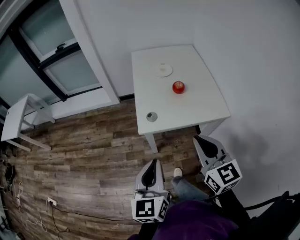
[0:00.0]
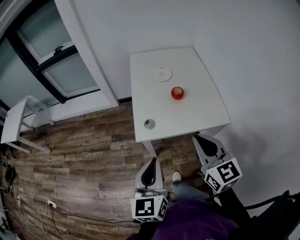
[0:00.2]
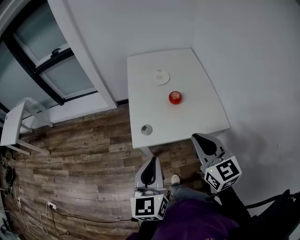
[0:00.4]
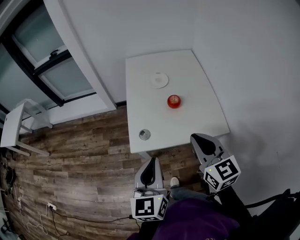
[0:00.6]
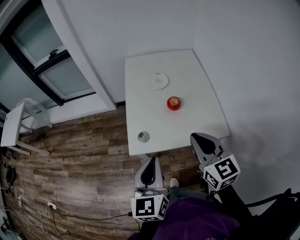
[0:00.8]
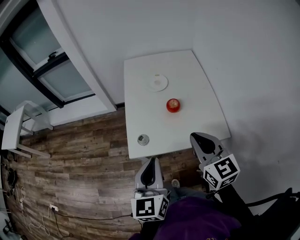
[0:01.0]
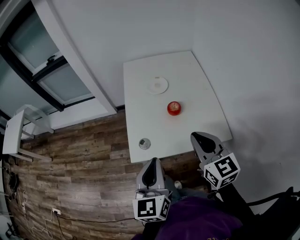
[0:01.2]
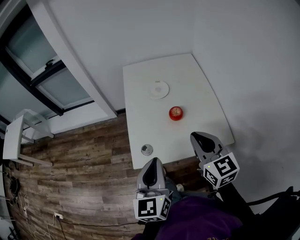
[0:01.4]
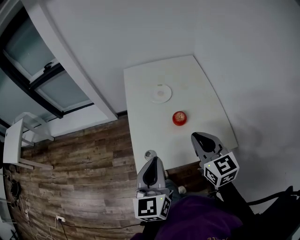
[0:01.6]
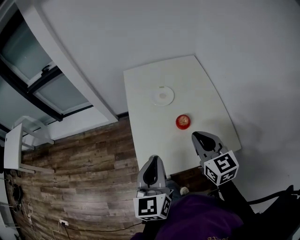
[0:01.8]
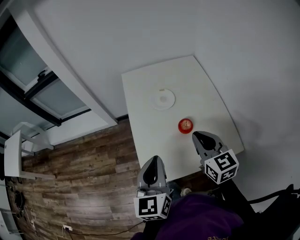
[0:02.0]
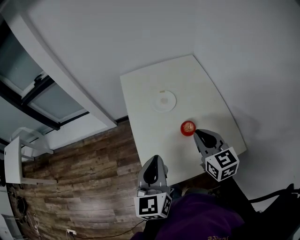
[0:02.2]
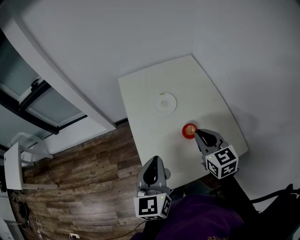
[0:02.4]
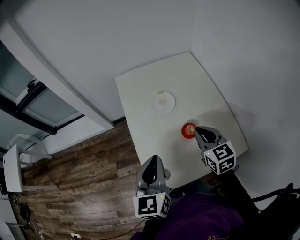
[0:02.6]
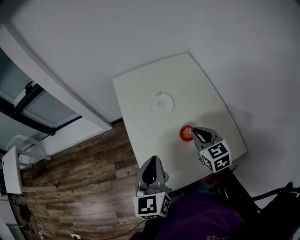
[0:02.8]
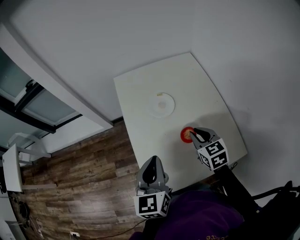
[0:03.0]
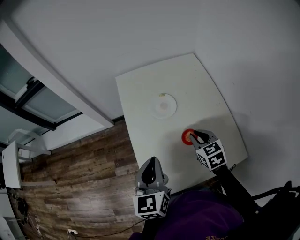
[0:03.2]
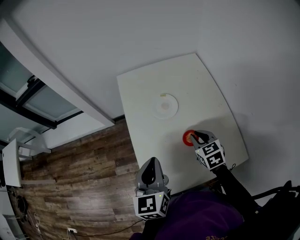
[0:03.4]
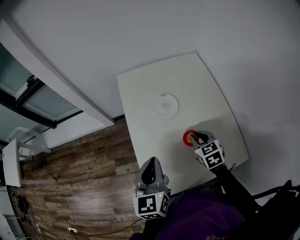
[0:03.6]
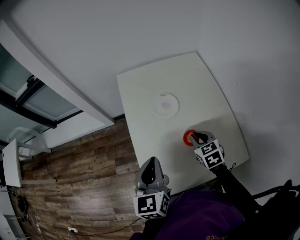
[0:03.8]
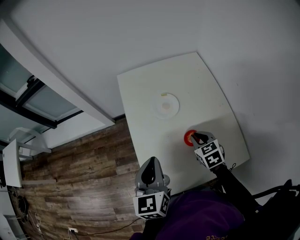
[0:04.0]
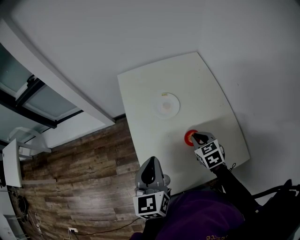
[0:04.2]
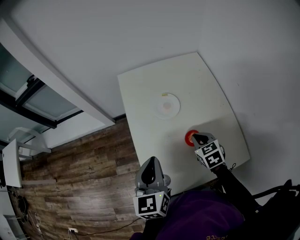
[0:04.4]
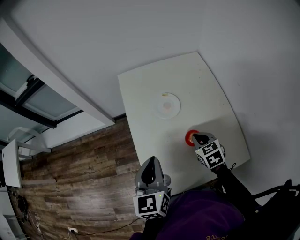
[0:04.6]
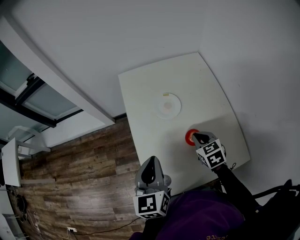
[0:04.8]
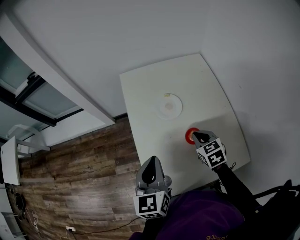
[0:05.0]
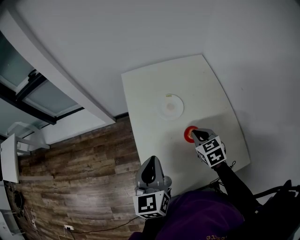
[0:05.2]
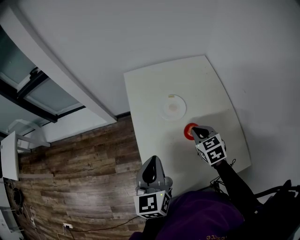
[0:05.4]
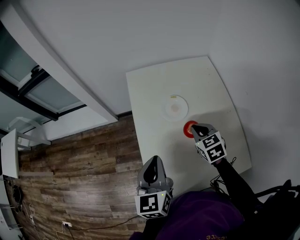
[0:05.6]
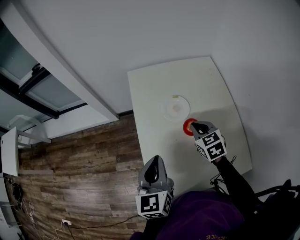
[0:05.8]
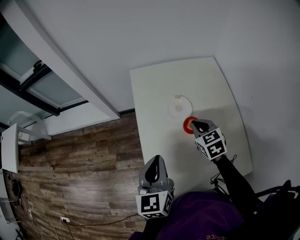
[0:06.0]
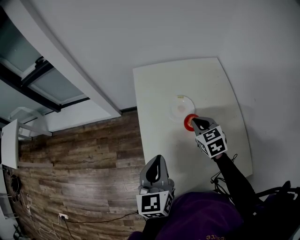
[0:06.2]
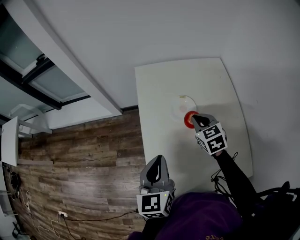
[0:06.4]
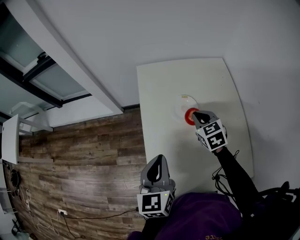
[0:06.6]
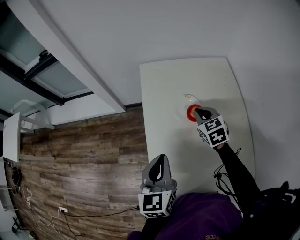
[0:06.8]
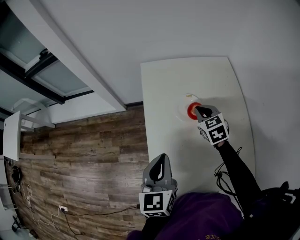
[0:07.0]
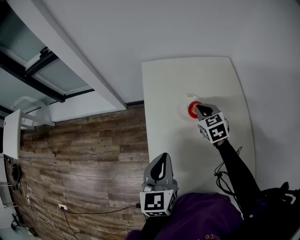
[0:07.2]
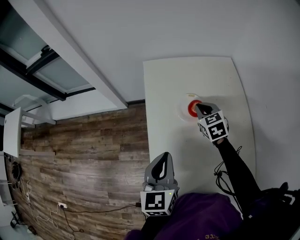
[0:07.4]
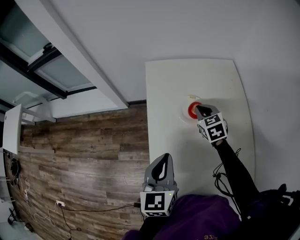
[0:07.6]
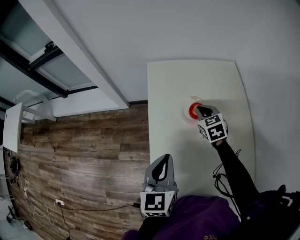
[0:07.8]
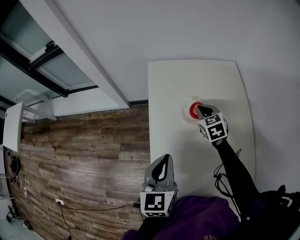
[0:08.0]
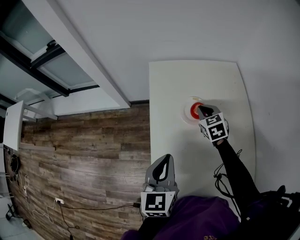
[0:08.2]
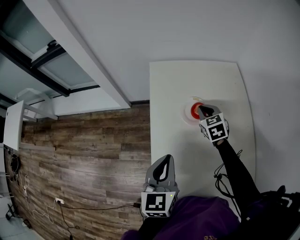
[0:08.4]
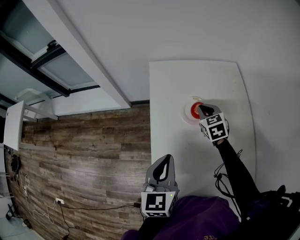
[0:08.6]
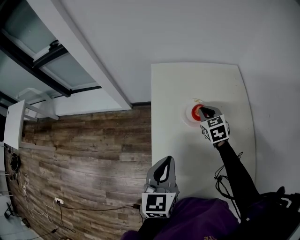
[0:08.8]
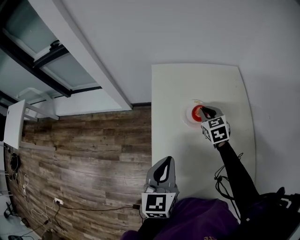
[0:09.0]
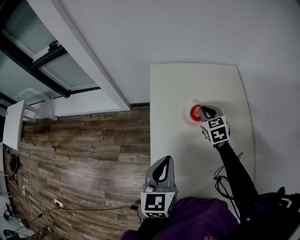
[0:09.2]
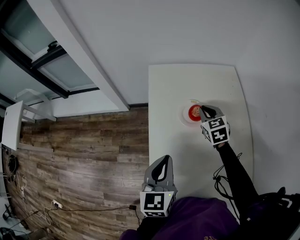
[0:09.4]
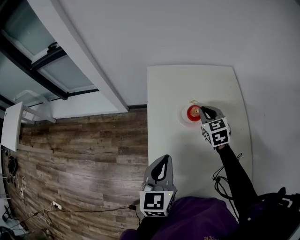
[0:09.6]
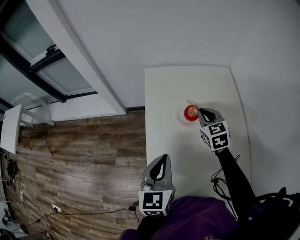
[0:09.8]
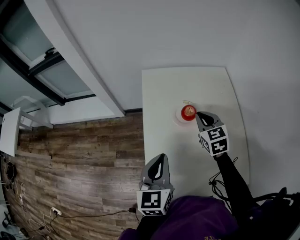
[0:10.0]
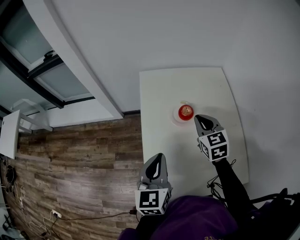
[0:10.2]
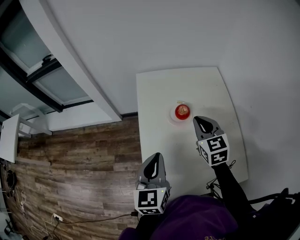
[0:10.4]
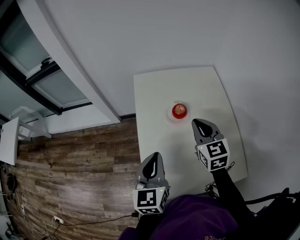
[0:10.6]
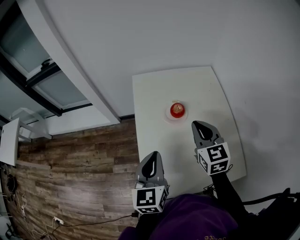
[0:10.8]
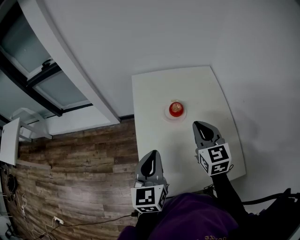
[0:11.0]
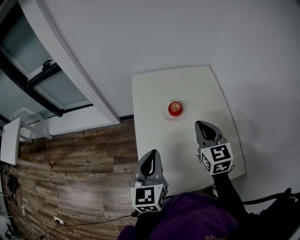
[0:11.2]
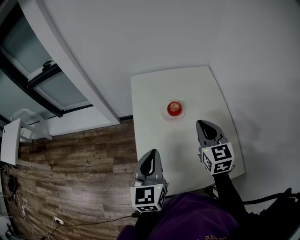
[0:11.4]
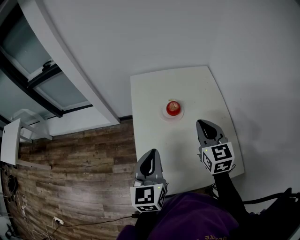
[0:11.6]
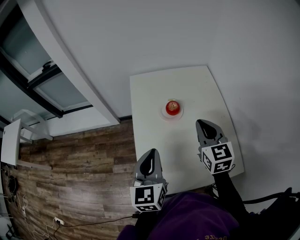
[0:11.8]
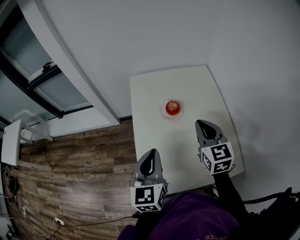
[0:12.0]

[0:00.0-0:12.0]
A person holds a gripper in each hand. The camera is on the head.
0:00.0 to 0:01.6: The two grippers go roughly 25 cm forward.
0:01.6 to 0:03.0: The left gripper travels forward by roughly 15 cm. The right gripper shifts some 20 cm forward and downward, and changes its angle by some 20 degrees.
0:03.0 to 0:04.4: The right gripper travels downward by approximately 5 cm.
0:04.4 to 0:06.0: The right gripper moves forward, roughly 10 cm.
0:06.0 to 0:07.6: The right gripper moves forward, about 10 cm.
0:07.6 to 0:09.0: The two grippers keep their place.
0:09.0 to 0:10.4: The right gripper shifts some 15 cm upward and backward.
0:10.4 to 0:12.0: The right gripper heads backward, covering approximately 5 cm.

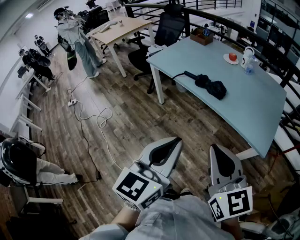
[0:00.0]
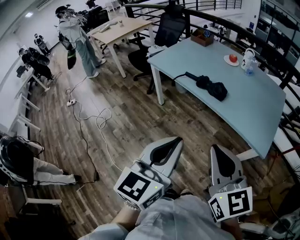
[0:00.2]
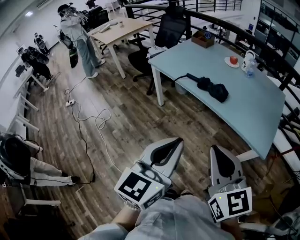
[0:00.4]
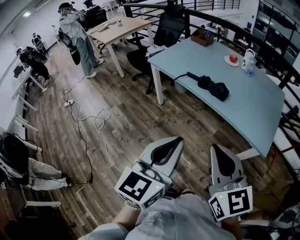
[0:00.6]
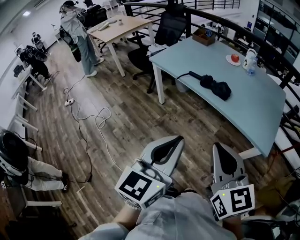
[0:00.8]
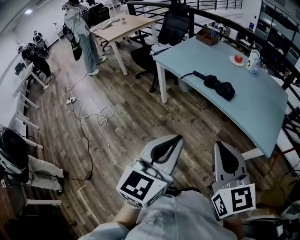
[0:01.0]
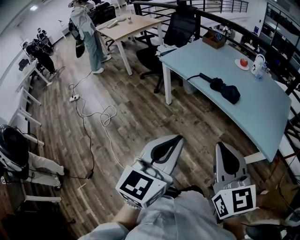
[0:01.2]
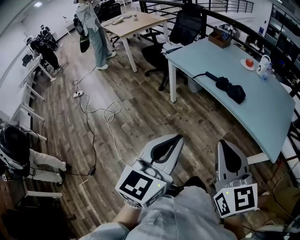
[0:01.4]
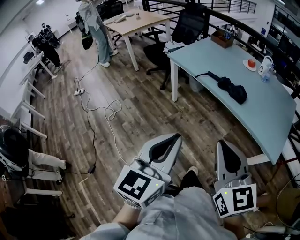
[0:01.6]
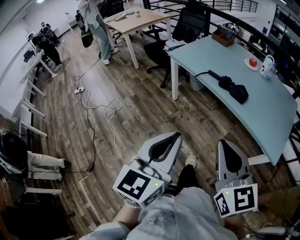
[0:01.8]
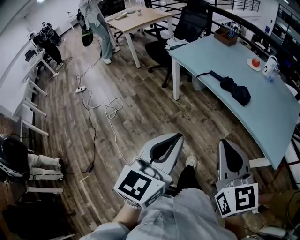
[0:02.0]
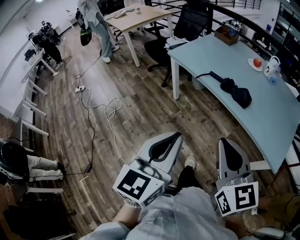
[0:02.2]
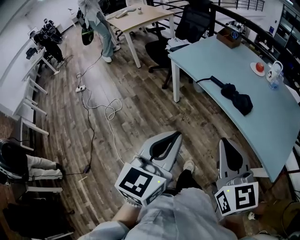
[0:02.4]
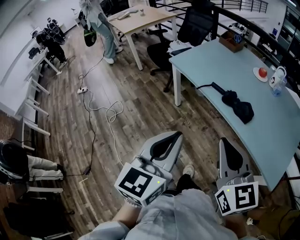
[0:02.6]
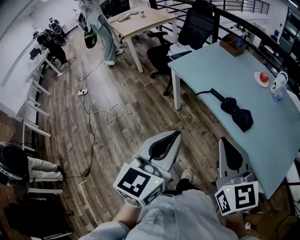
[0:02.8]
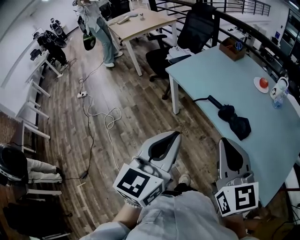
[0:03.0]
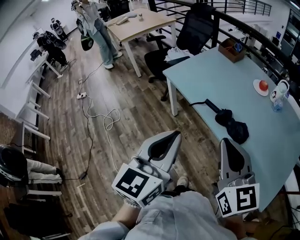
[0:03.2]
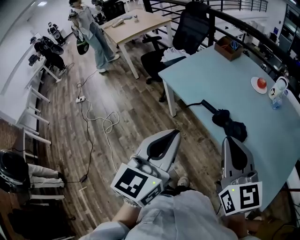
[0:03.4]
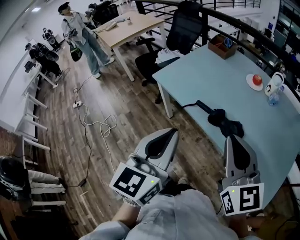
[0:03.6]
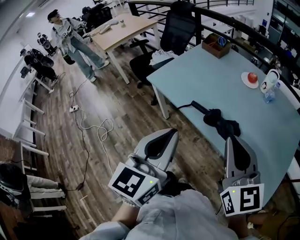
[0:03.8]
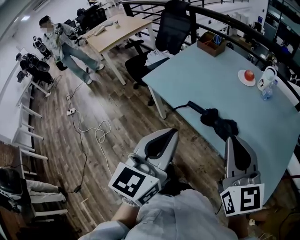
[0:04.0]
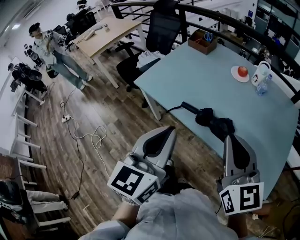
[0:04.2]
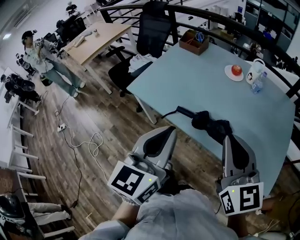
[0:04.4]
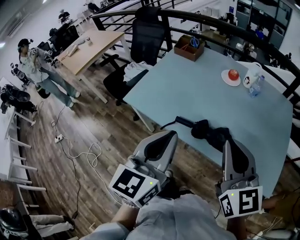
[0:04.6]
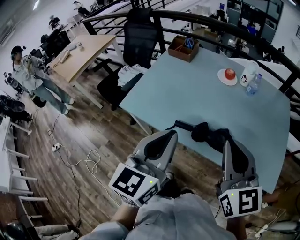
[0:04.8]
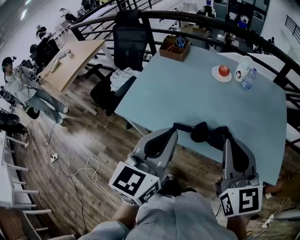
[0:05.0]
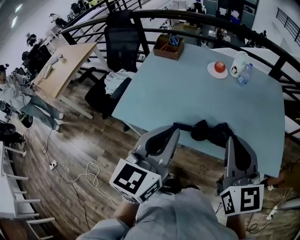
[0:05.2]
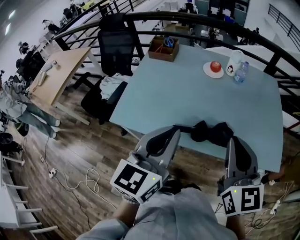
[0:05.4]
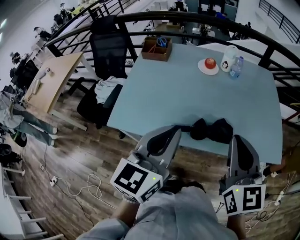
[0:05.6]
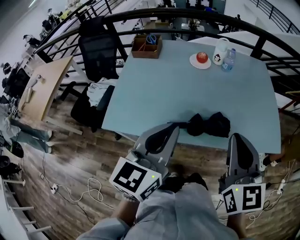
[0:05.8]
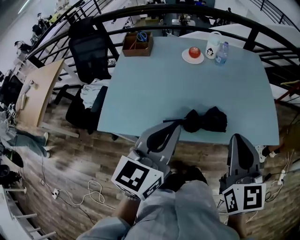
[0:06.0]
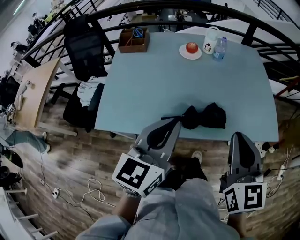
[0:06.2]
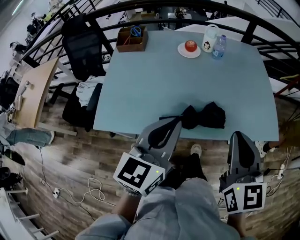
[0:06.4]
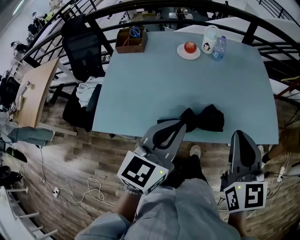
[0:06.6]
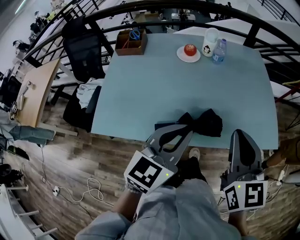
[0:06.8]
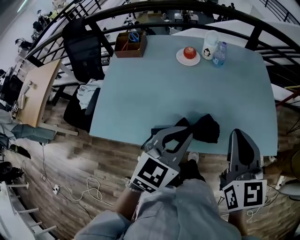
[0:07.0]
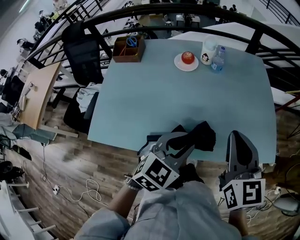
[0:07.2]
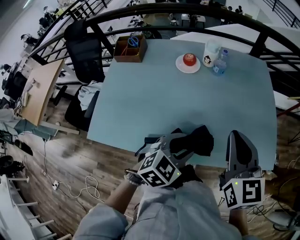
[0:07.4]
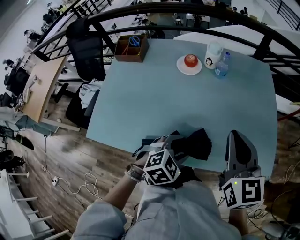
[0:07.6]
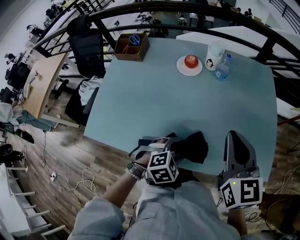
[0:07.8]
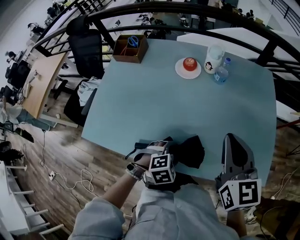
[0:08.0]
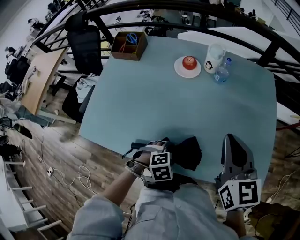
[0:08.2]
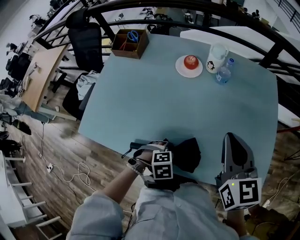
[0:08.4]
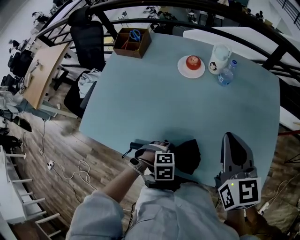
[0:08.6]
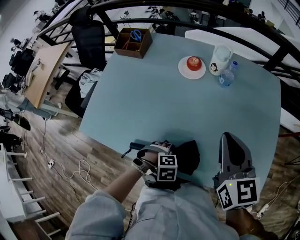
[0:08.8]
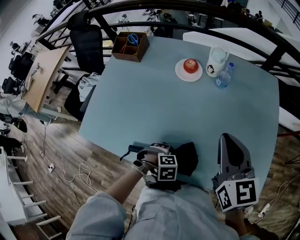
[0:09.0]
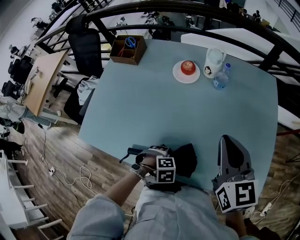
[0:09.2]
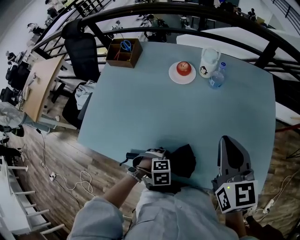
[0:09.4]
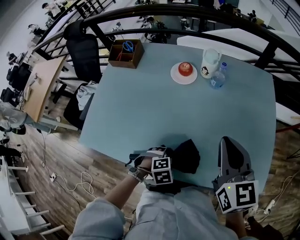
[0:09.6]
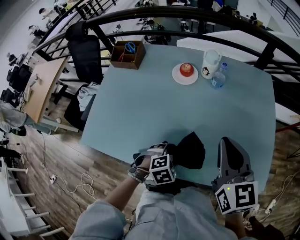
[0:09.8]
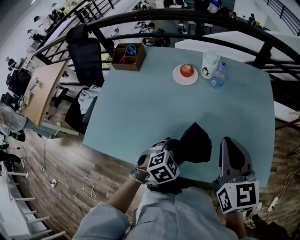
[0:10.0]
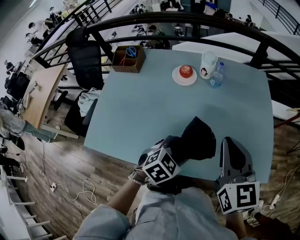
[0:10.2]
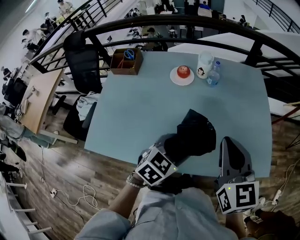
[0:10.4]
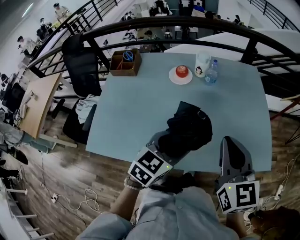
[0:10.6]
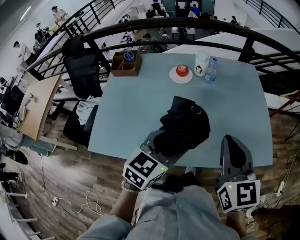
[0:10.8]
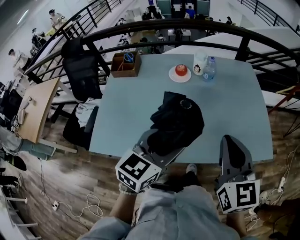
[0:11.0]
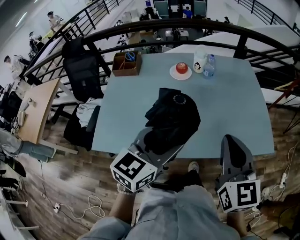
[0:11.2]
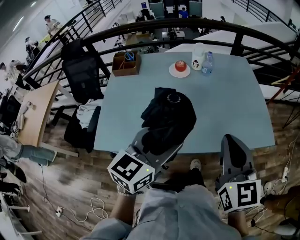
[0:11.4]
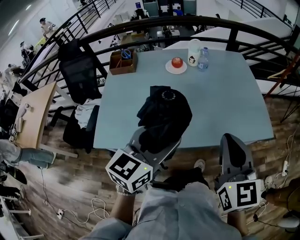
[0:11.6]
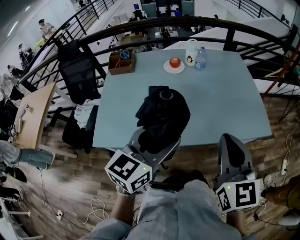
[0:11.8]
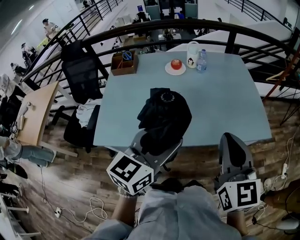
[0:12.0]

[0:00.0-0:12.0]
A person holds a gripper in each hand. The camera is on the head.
0:00.0 to 0:01.6: Both grippers travel together to the left, approximately 10 cm.
0:01.6 to 0:03.0: Both grippers move forward, some 25 cm.
0:03.0 to 0:04.4: Both grippers travel together forward and to the right, about 15 cm.
0:04.4 to 0:06.0: The right gripper changes its angle by roughly 40 degrees. Meanwhile the left gripper moves approximately 10 cm, and rotates some 40 degrees.
0:06.0 to 0:07.6: The left gripper travels downward, to the right and forward by roughly 25 cm, points its fingers some 40 degrees further downward, and opens up, while the right gripper heads forward, covering about 20 cm.
0:07.6 to 0:09.0: The right gripper ends up roughly 10 cm from where it was. Meanwhile the left gripper moves downward, approximately 15 cm, and tilts its fingers about 30 degrees downward.
0:09.0 to 0:10.4: The left gripper goes some 20 cm upward, and tilts its fingers approximately 40 degrees upward. Meanwhile the right gripper ends up roughly 10 cm from where it was.
0:10.4 to 0:12.0: The right gripper travels backward by roughly 20 cm, while the left gripper goes some 25 cm backward and upward, and tips its fingers upward by approximately 30 degrees.
